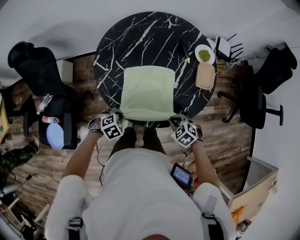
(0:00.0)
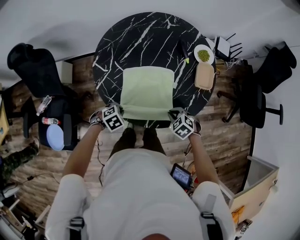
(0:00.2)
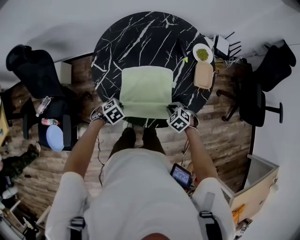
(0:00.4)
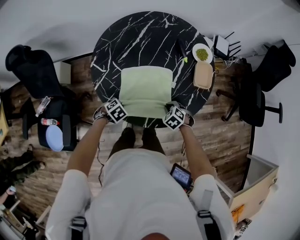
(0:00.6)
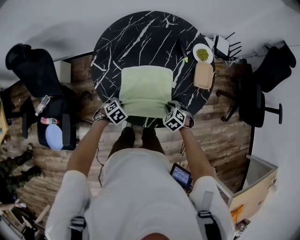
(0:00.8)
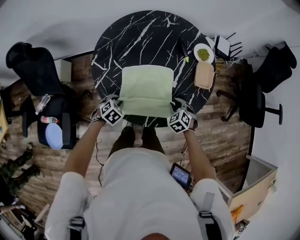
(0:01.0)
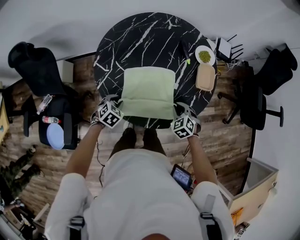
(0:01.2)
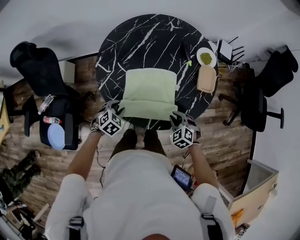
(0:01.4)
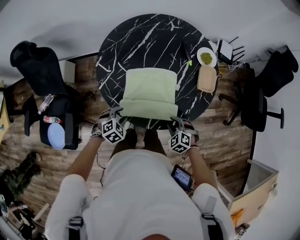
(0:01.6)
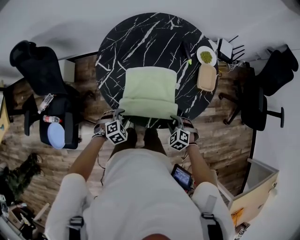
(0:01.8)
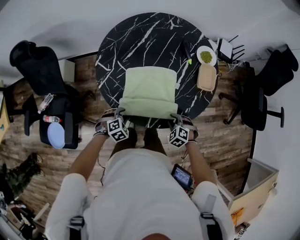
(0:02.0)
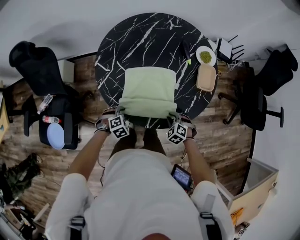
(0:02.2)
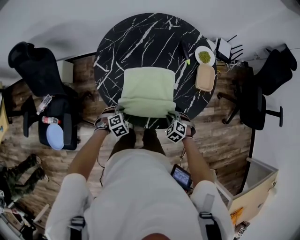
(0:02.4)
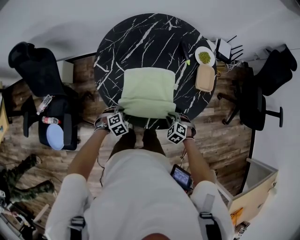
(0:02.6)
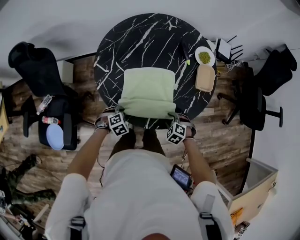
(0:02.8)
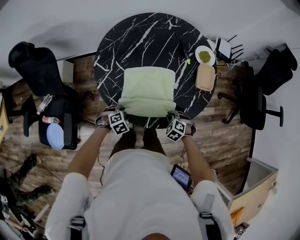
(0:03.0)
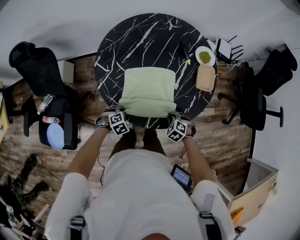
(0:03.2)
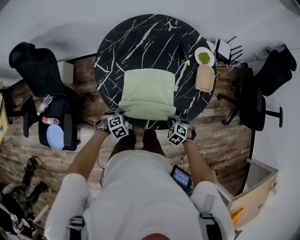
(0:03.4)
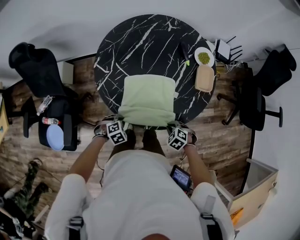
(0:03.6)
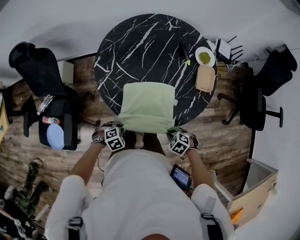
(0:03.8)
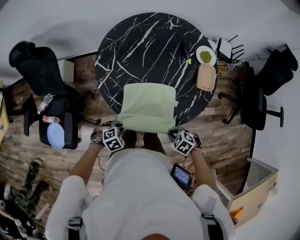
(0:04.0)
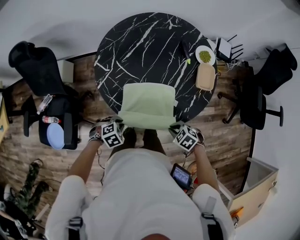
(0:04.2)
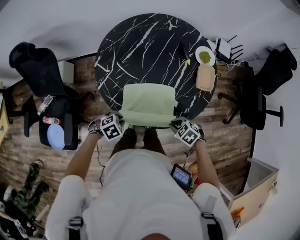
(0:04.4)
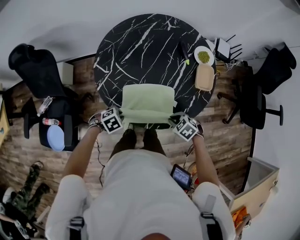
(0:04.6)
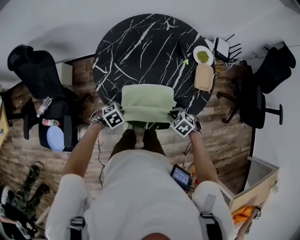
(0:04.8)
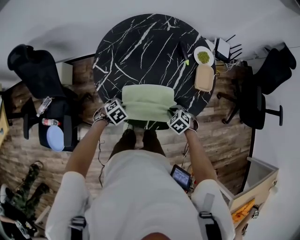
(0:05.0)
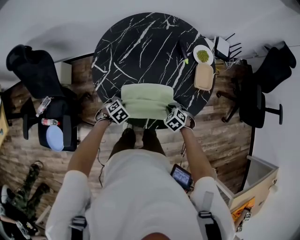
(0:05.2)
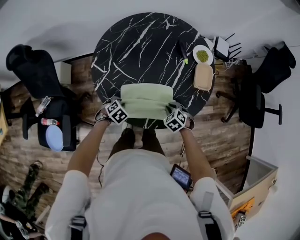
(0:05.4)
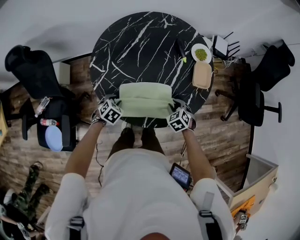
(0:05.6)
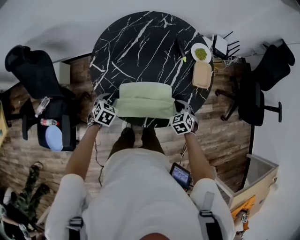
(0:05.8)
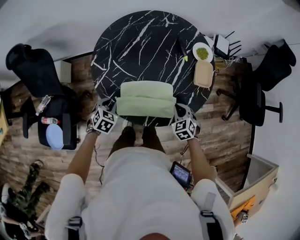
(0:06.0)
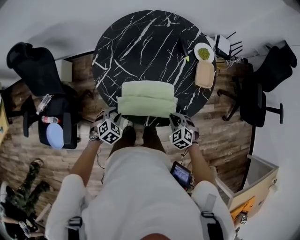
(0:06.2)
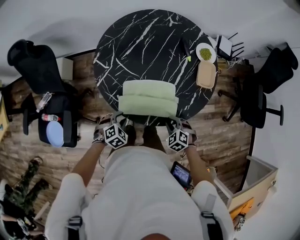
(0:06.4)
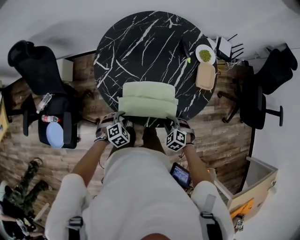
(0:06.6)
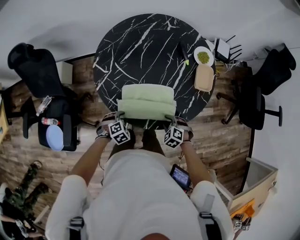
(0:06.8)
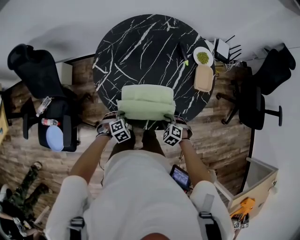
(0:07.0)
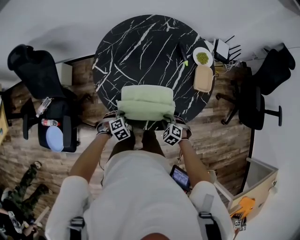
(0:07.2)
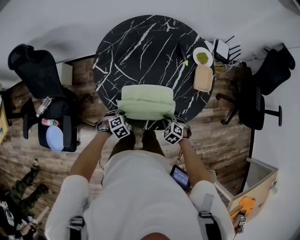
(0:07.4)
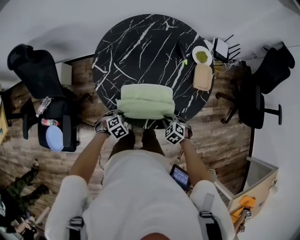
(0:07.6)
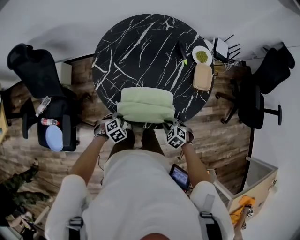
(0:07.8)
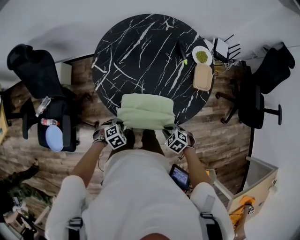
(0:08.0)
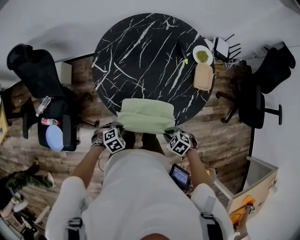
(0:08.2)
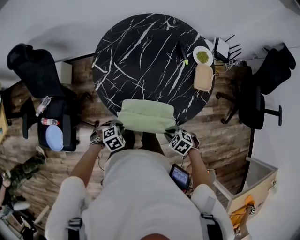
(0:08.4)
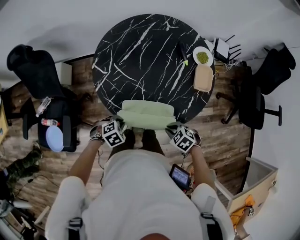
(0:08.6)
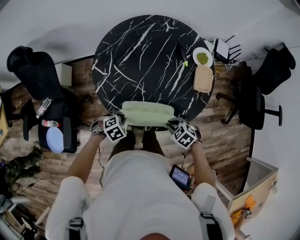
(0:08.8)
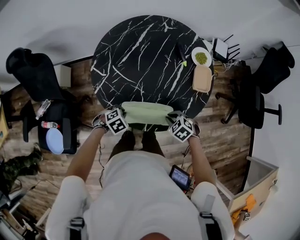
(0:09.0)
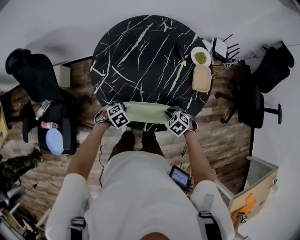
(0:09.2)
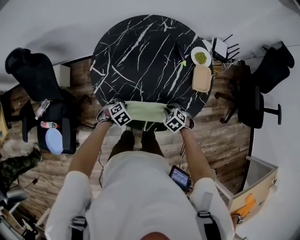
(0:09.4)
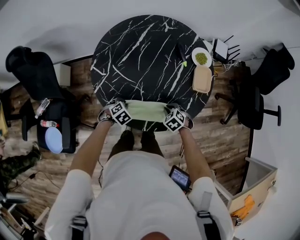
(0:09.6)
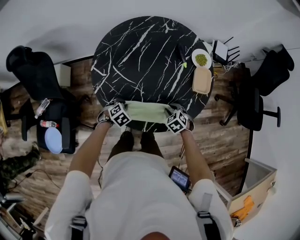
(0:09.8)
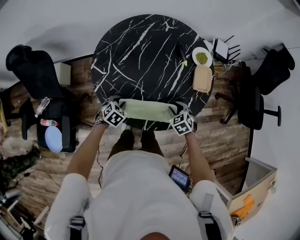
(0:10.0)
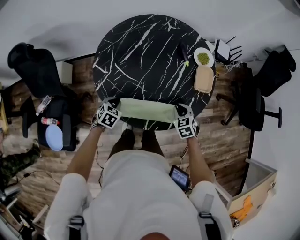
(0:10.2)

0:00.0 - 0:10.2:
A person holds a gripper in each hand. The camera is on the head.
0:00.0 - 0:01.4: The left gripper shifts by roughly 5 cm, and turns by roughly 20 degrees.
0:01.4 - 0:03.0: Both grippers travel together downward, roughly 5 cm. The left gripper turns by about 20 degrees.
0:03.0 - 0:04.4: Both grippers travel together upward, approximately 5 cm. The right gripper changes its angle by some 20 degrees.
0:04.4 - 0:05.8: The left gripper ends up roughly 15 cm from where it was, and changes its angle by approximately 40 degrees, while the right gripper changes place by approximately 10 cm, and rotates about 40 degrees.
0:05.8 - 0:07.2: The left gripper ends up about 15 cm from where it was, and turns by approximately 30 degrees; the right gripper shifts by some 10 cm, and rotates about 30 degrees.
0:07.2 - 0:08.8: Both grippers travel together upward, about 5 cm.
0:08.8 - 0:10.2: The left gripper changes place by roughly 10 cm, and swivels some 30 degrees, while the right gripper shifts by approximately 10 cm, and changes its angle by about 30 degrees.

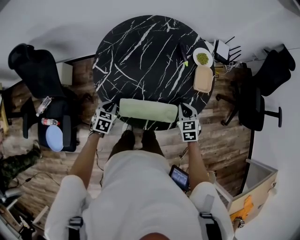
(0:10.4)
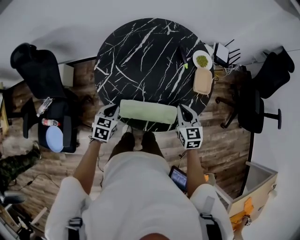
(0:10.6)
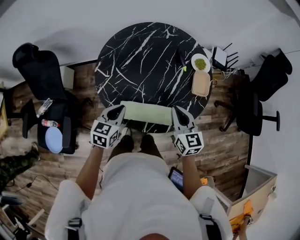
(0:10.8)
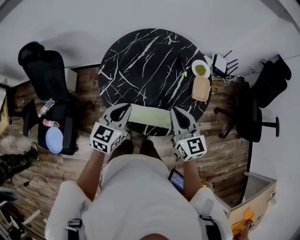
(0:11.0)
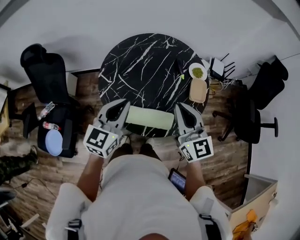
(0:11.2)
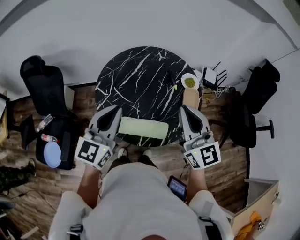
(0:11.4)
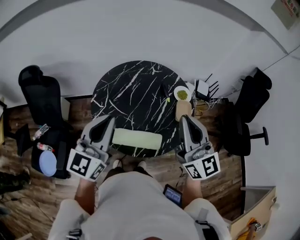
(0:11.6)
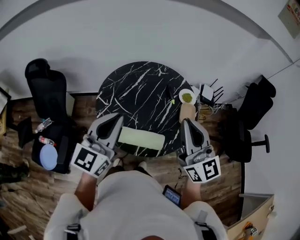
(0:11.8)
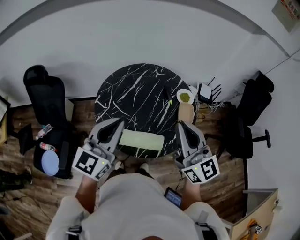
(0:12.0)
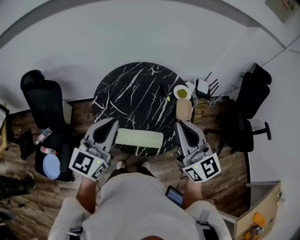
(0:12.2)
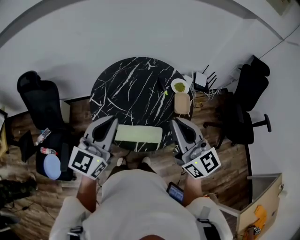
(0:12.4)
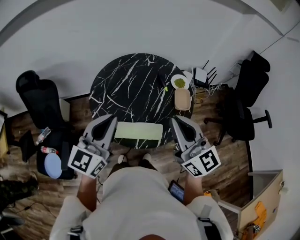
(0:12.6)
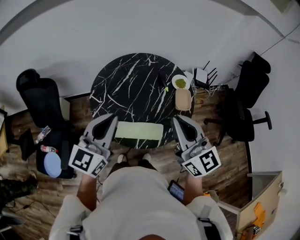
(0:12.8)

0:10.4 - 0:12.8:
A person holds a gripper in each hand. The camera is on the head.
0:10.4 - 0:11.6: The two grippers go roughly 40 cm upward. The right gripper tilts its fingers about 60 degrees upward; the left gripper points its fingers roughly 60 degrees further upward.
0:11.6 - 0:12.8: There are only small adjustments of the grippers.

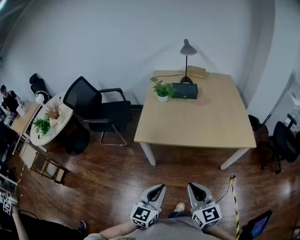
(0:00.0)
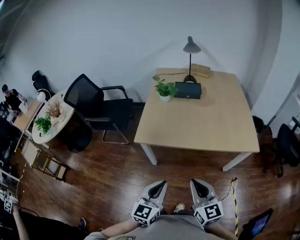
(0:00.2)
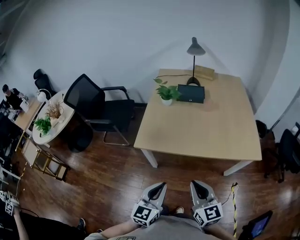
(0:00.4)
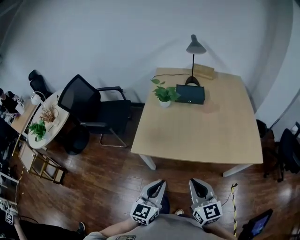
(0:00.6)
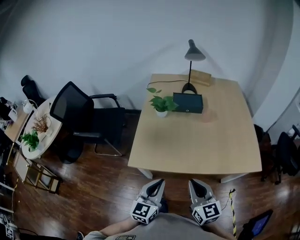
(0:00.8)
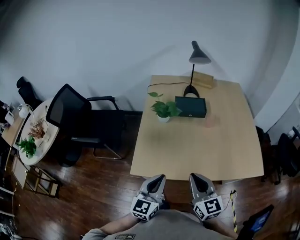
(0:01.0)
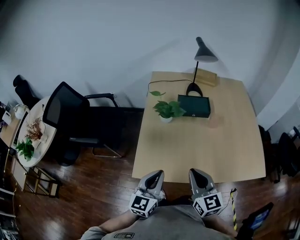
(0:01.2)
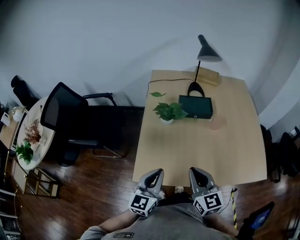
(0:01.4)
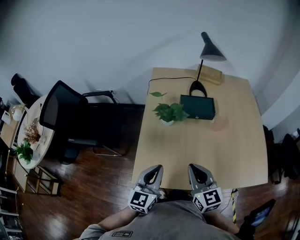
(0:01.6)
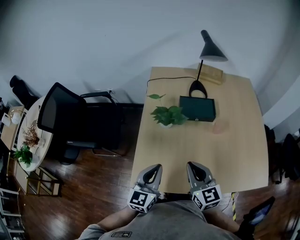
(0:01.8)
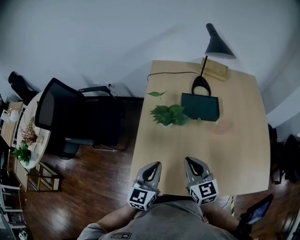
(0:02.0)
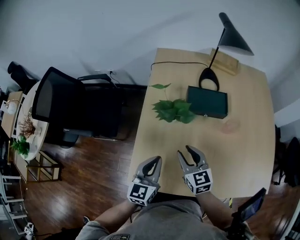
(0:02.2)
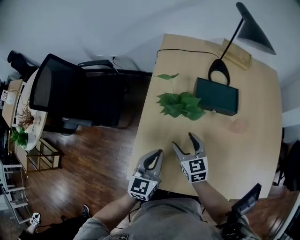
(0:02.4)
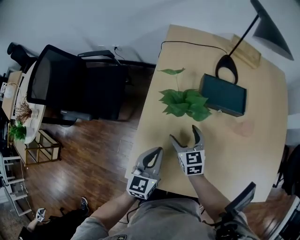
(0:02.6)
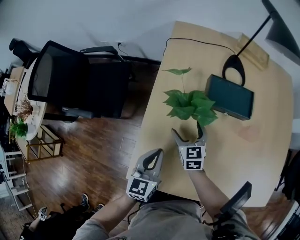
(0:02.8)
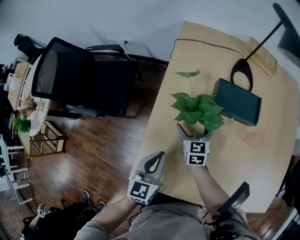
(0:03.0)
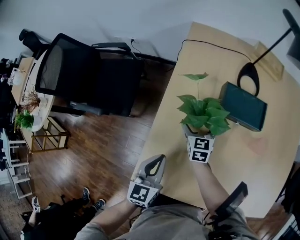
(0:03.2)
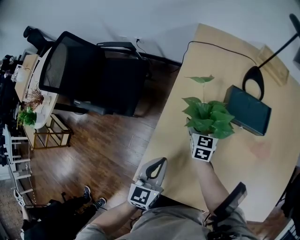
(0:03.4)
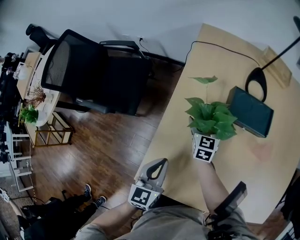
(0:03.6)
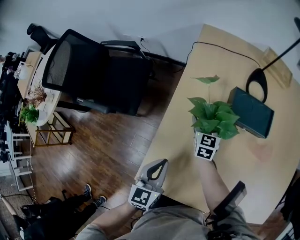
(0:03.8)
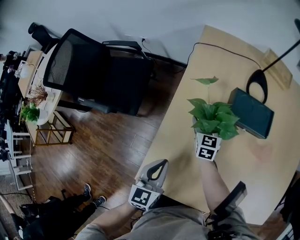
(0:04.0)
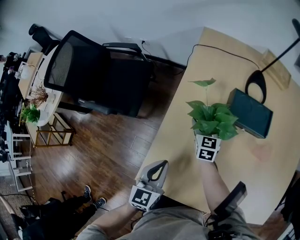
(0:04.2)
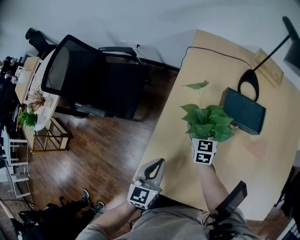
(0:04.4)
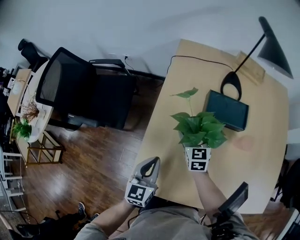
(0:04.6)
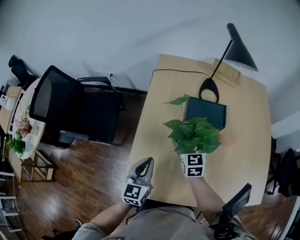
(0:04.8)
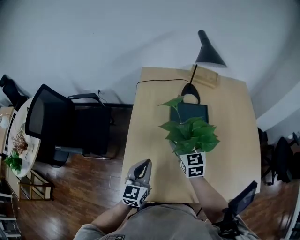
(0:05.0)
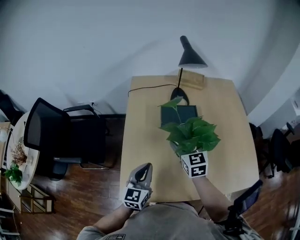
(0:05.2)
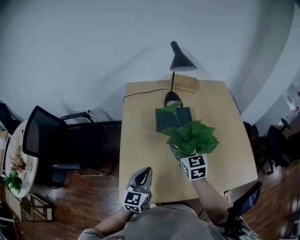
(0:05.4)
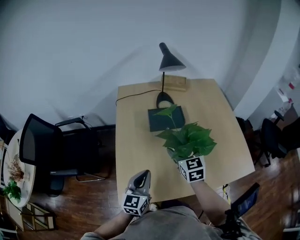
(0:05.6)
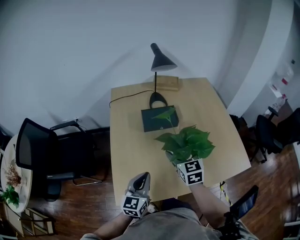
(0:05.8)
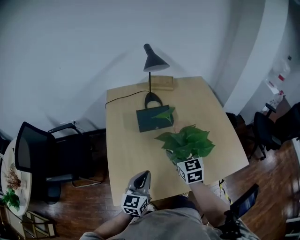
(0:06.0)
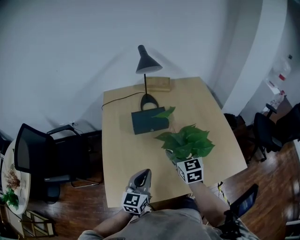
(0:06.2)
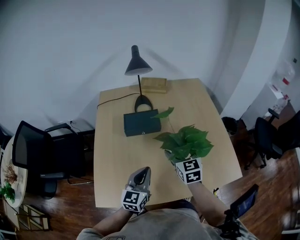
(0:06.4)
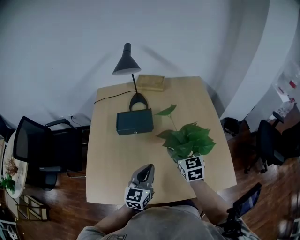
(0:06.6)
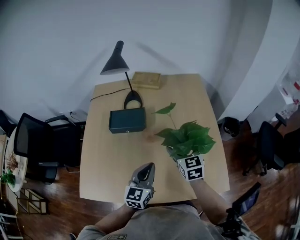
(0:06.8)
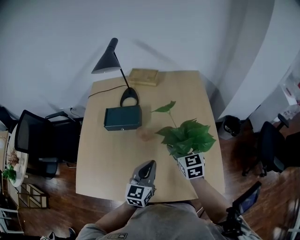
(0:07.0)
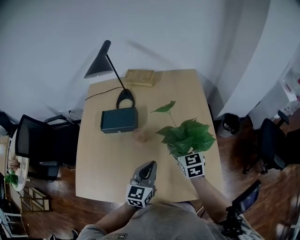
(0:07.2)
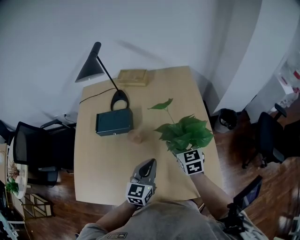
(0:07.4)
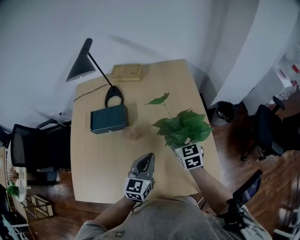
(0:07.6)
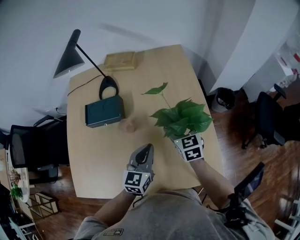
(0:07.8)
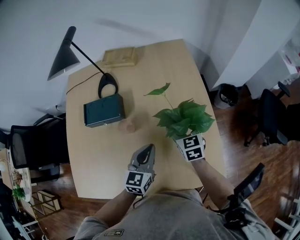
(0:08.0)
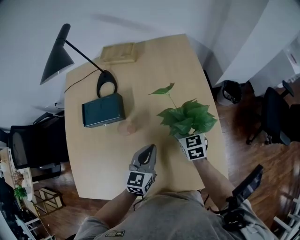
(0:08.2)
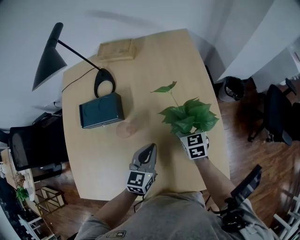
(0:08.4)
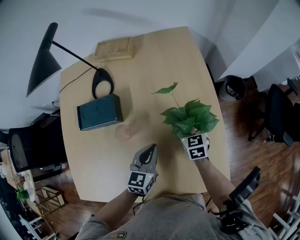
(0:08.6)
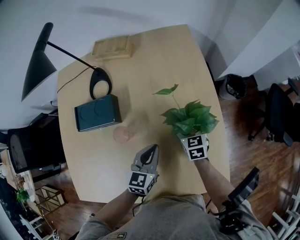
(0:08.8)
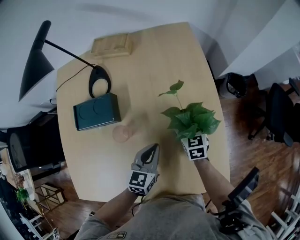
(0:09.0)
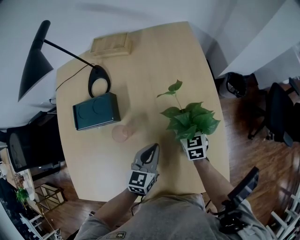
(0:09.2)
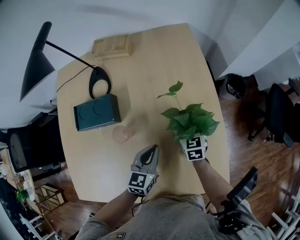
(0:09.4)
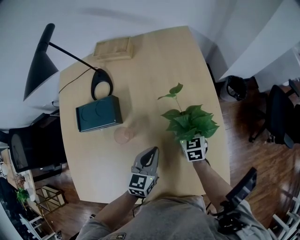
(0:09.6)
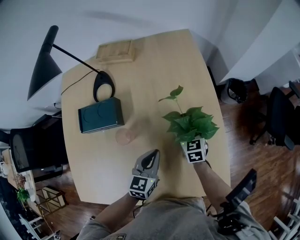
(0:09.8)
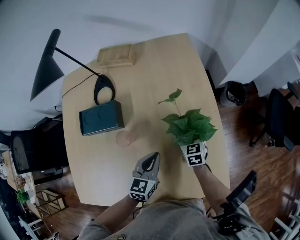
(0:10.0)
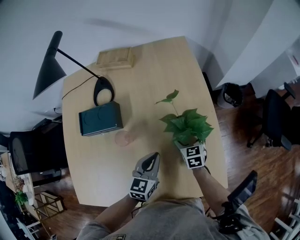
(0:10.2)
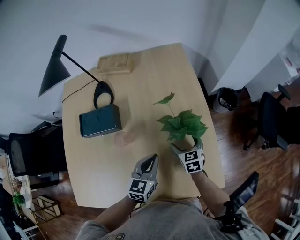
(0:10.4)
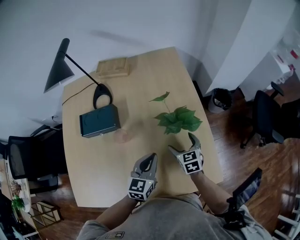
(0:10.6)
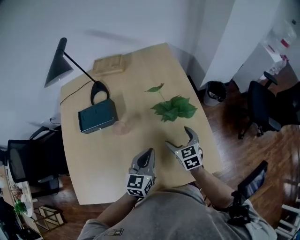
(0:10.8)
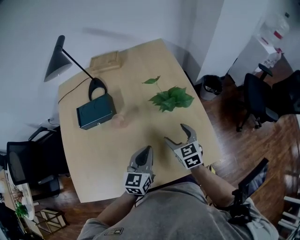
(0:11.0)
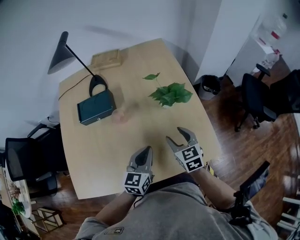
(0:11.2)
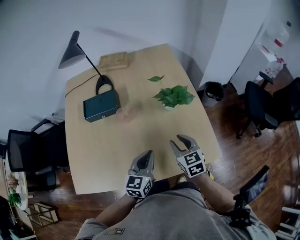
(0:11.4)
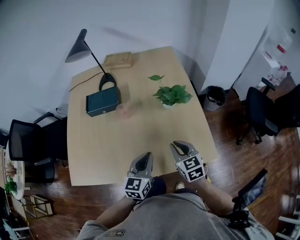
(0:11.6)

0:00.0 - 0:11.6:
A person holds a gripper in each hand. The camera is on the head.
0:00.0 - 0:01.4: The two grippers go about 40 cm forward.
0:01.4 - 0:02.8: The right gripper shifts roughly 35 cm forward and downward, rotates some 20 degrees, and opens up. Meanwhile the left gripper shifts about 20 cm forward and downward, and swivels about 20 degrees.
0:02.8 - 0:04.4: The right gripper moves forward, some 5 cm.
0:04.4 - 0:05.8: The right gripper moves upward, to the right and backward, about 35 cm. The left gripper heads to the right, upward and backward, covering approximately 15 cm, and turns by approximately 30 degrees.
0:05.8 - 0:07.2: Both grippers move to the right and forward, some 35 cm.
0:07.2 - 0:08.8: Both grippers move downward and forward, some 15 cm.
0:08.8 - 0:10.2: The grippers make only small movements.
0:10.2 - 0:11.6: The right gripper moves backward and upward, roughly 25 cm, and closes up. Meanwhile the left gripper shifts about 20 cm backward.
